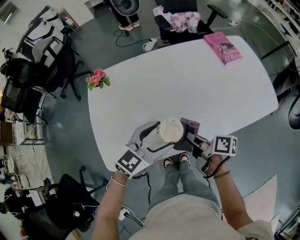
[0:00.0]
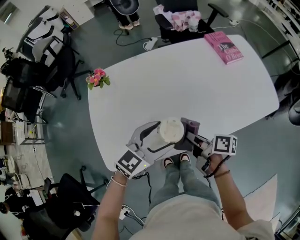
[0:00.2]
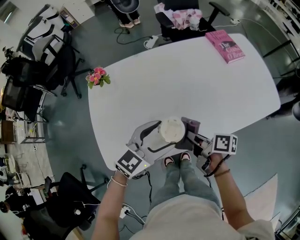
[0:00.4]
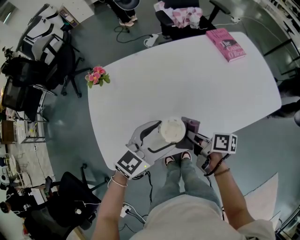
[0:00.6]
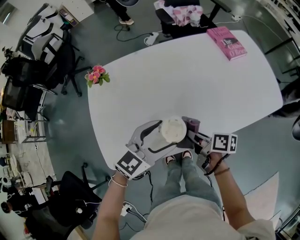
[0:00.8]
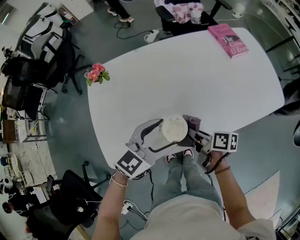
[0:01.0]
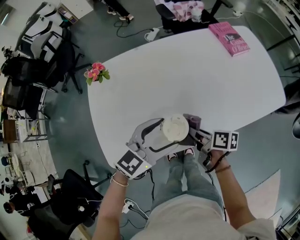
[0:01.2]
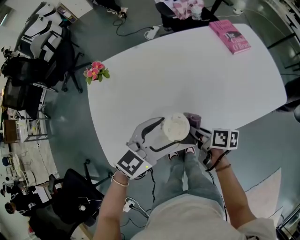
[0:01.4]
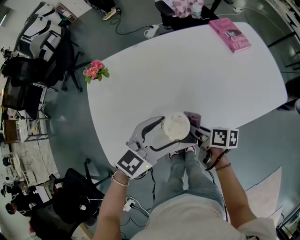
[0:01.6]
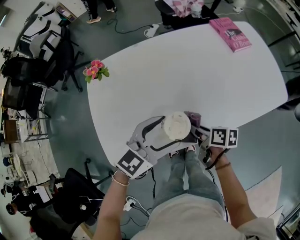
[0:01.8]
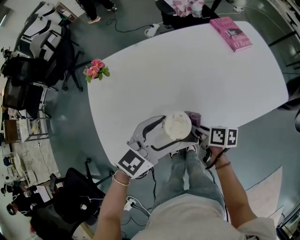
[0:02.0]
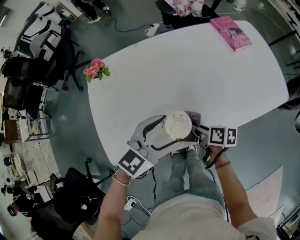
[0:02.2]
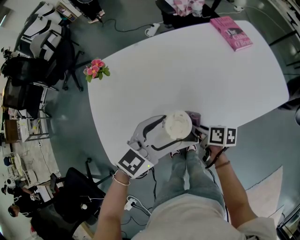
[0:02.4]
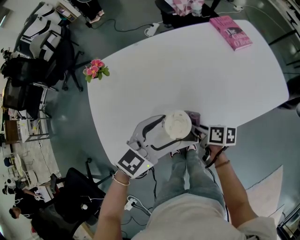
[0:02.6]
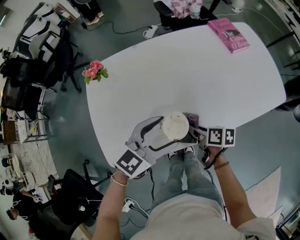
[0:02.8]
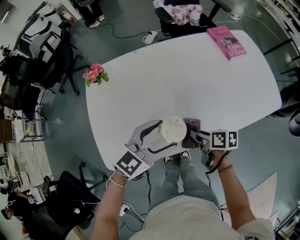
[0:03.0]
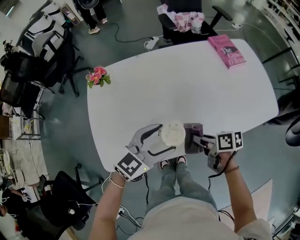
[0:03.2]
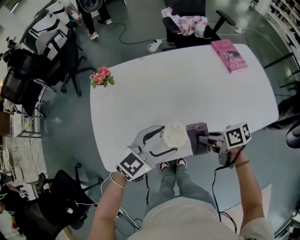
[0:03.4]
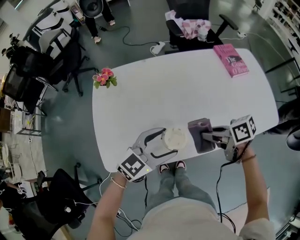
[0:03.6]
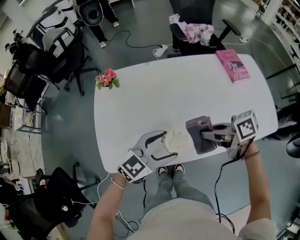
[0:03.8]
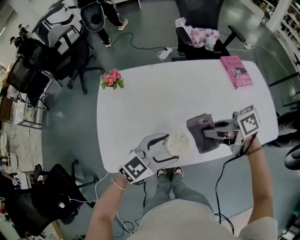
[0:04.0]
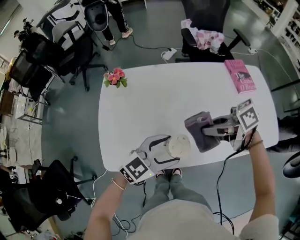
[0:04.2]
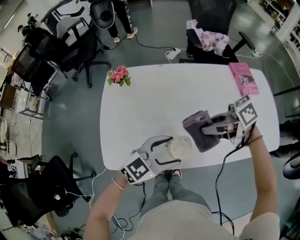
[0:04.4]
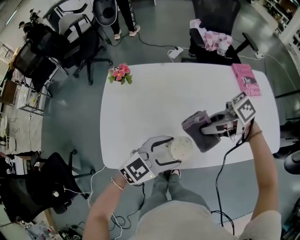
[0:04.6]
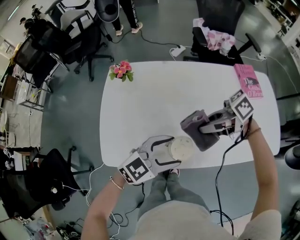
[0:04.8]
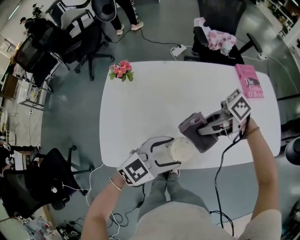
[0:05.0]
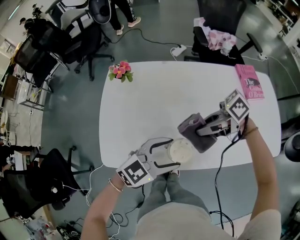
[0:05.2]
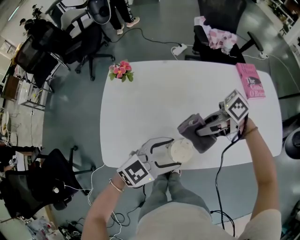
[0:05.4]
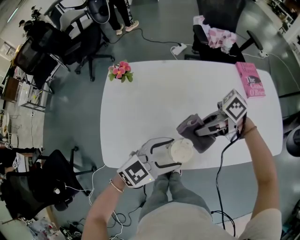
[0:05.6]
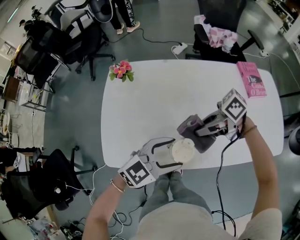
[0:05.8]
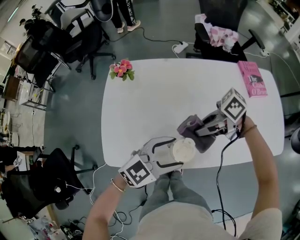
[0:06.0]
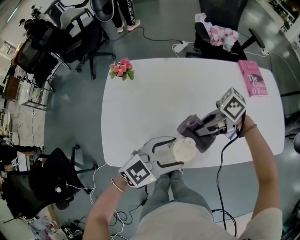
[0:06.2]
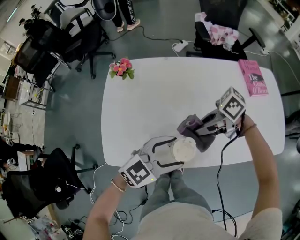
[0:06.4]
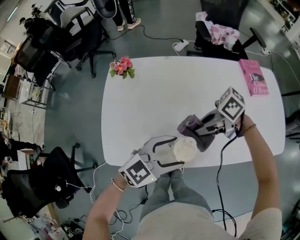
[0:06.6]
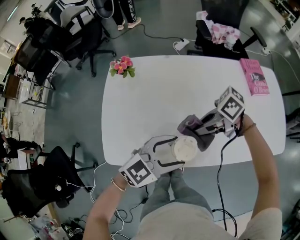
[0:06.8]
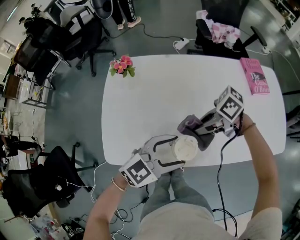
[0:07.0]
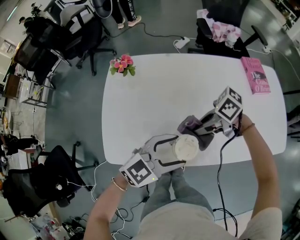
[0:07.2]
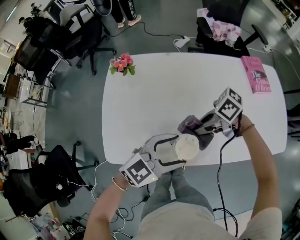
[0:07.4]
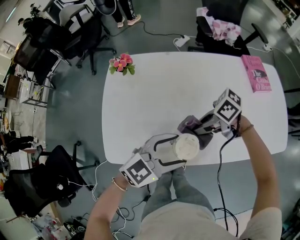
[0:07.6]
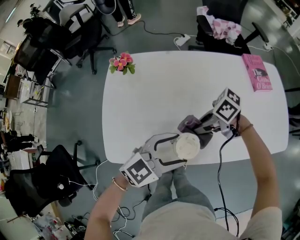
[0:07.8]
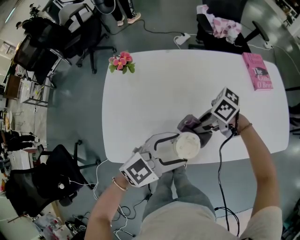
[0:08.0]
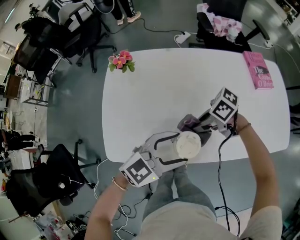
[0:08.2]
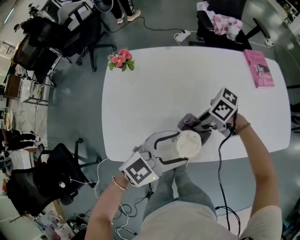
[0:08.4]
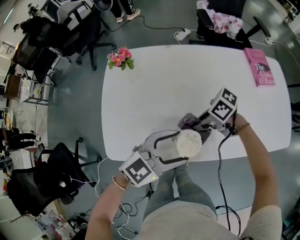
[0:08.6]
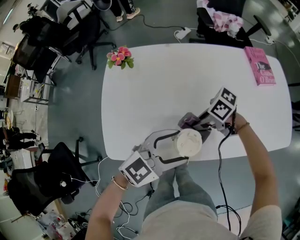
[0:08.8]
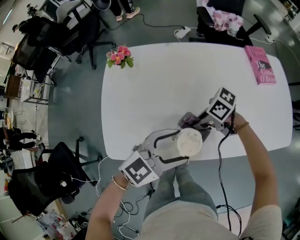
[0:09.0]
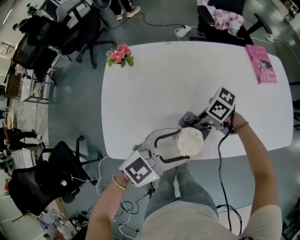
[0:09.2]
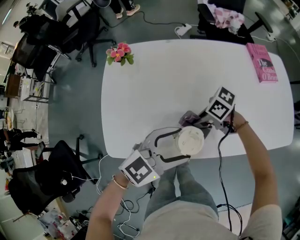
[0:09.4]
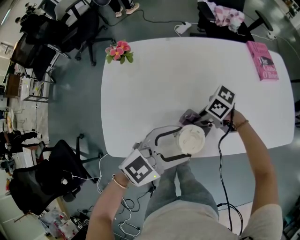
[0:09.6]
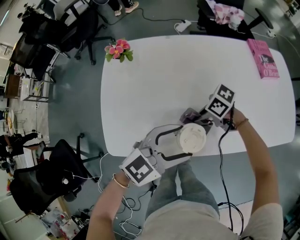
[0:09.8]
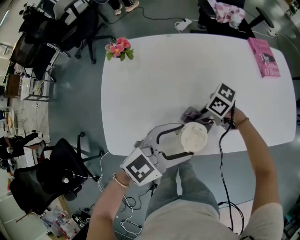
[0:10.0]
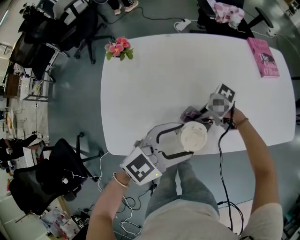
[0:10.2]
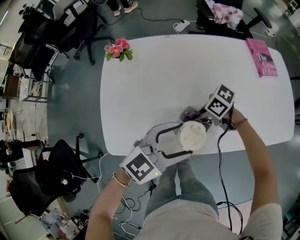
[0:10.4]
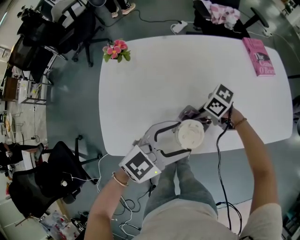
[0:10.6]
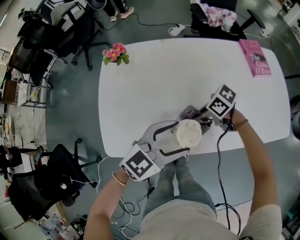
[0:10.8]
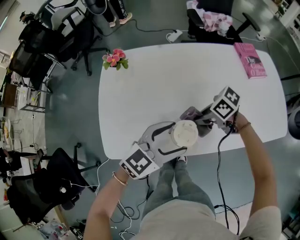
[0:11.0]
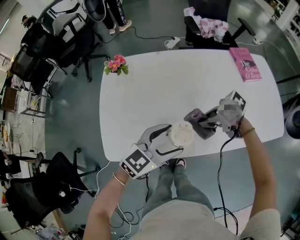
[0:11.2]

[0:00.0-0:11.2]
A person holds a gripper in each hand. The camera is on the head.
0:00.0 to 0:01.6: The right gripper shifts about 5 cm downward.
0:01.6 to 0:03.2: The grippers stay close to where they were, moving slightly.
0:03.2 to 0:04.8: The right gripper travels upward by roughly 15 cm, and changes its angle by approximately 60 degrees.
0:04.8 to 0:06.4: The right gripper travels downward by roughly 5 cm.
0:06.4 to 0:08.0: The right gripper travels downward by approximately 5 cm.
0:08.0 to 0:09.6: The right gripper shifts approximately 5 cm downward.
0:09.6 to 0:11.2: The right gripper is displaced upward by roughly 5 cm.

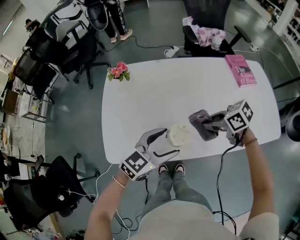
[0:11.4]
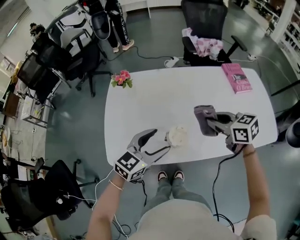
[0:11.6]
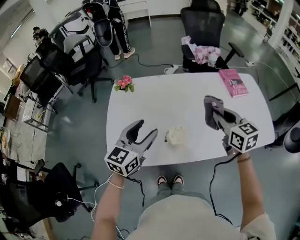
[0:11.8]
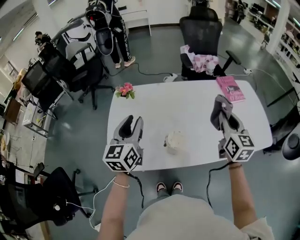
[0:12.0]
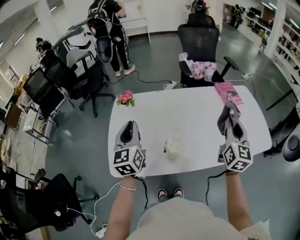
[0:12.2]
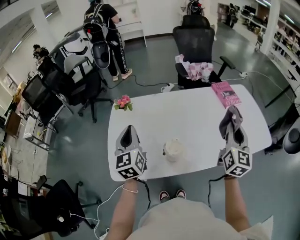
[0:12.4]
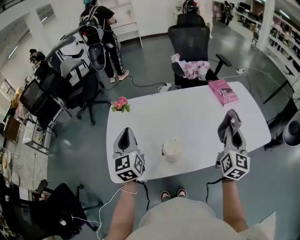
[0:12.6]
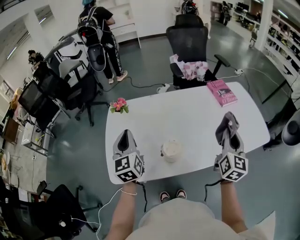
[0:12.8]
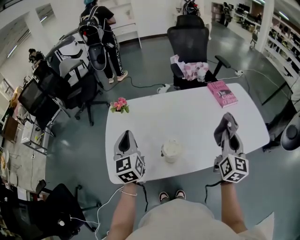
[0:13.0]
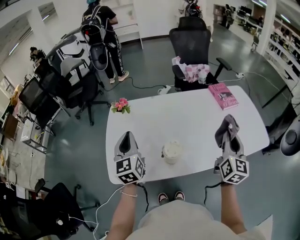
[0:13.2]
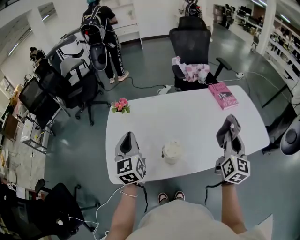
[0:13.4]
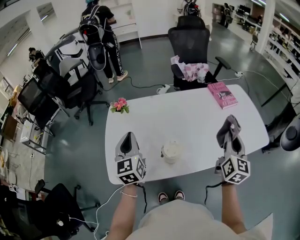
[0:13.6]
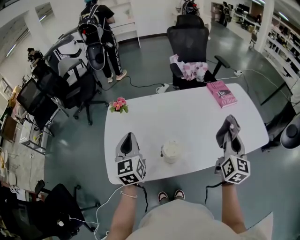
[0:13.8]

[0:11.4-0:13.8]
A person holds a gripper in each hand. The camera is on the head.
0:11.4 to 0:12.6: The left gripper shifts by some 20 cm, rotates some 60 degrees, and closes; the right gripper heads upward, covering approximately 15 cm, and tips its fingers upward by approximately 40 degrees.
0:12.6 to 0:13.8: The grippers make only small movements.

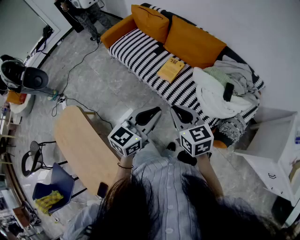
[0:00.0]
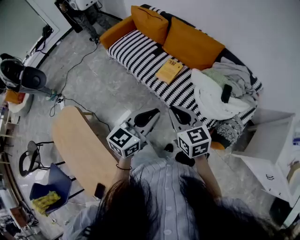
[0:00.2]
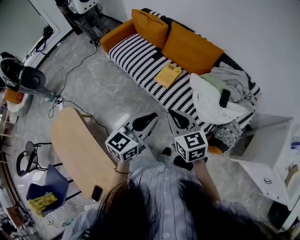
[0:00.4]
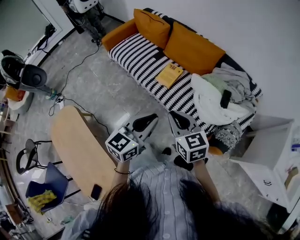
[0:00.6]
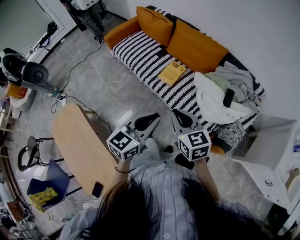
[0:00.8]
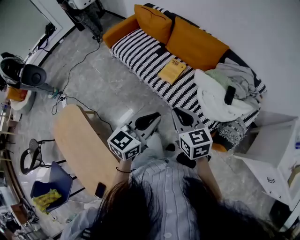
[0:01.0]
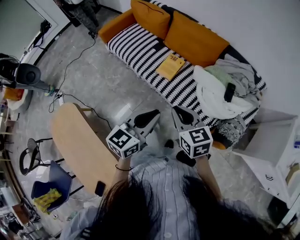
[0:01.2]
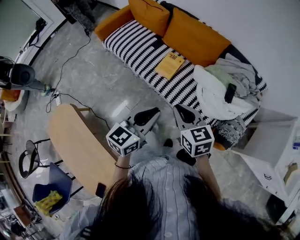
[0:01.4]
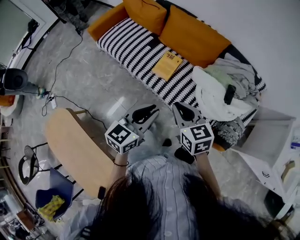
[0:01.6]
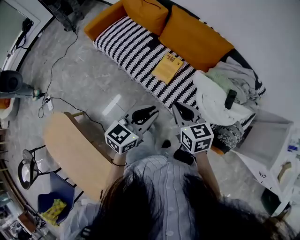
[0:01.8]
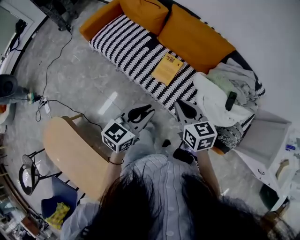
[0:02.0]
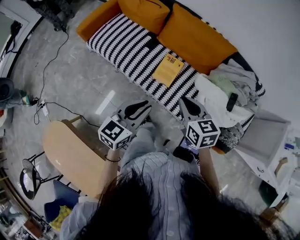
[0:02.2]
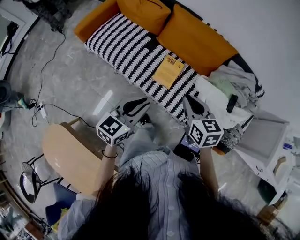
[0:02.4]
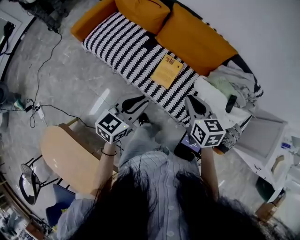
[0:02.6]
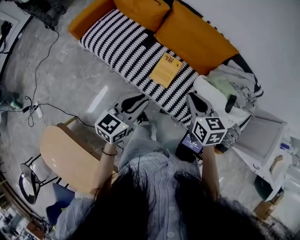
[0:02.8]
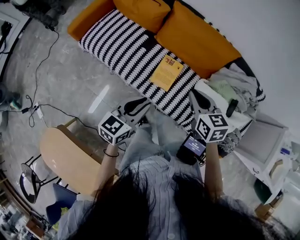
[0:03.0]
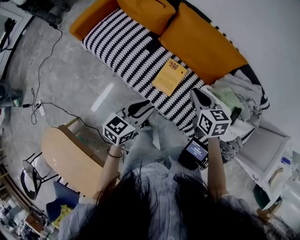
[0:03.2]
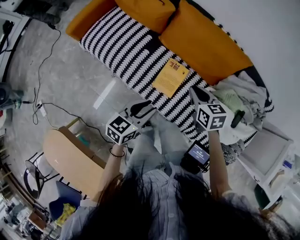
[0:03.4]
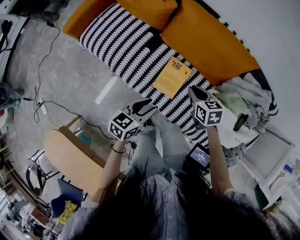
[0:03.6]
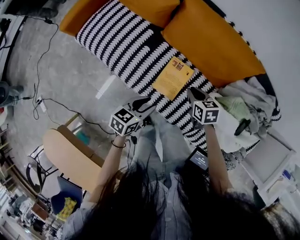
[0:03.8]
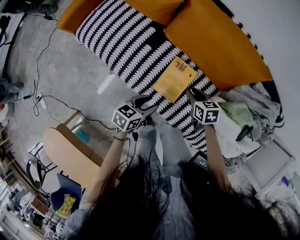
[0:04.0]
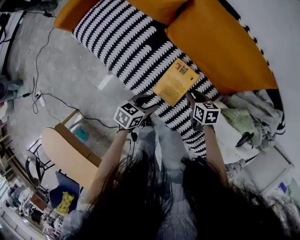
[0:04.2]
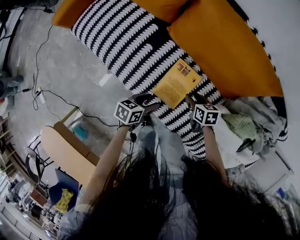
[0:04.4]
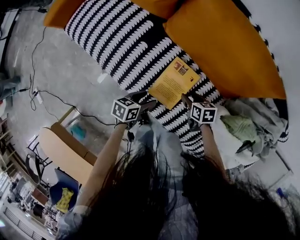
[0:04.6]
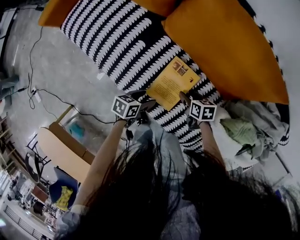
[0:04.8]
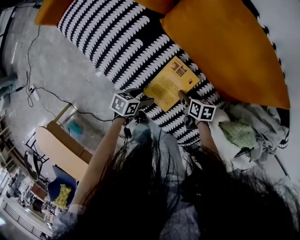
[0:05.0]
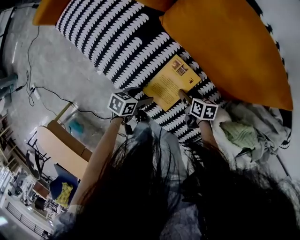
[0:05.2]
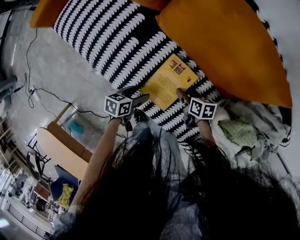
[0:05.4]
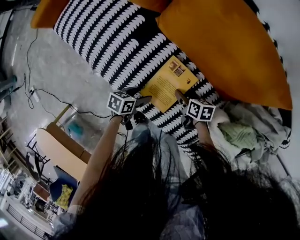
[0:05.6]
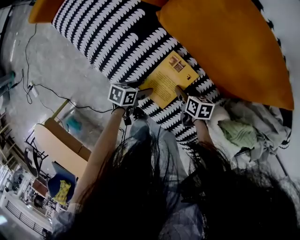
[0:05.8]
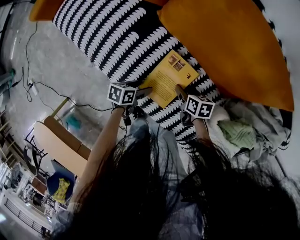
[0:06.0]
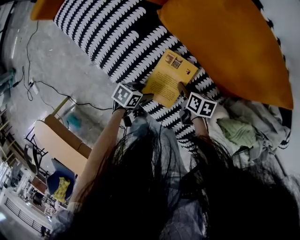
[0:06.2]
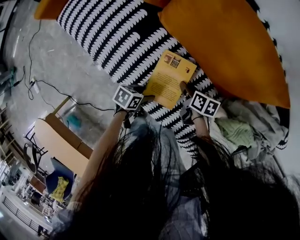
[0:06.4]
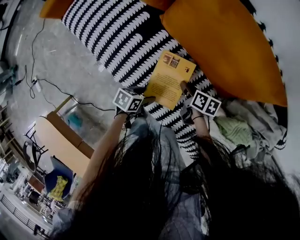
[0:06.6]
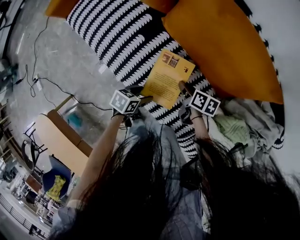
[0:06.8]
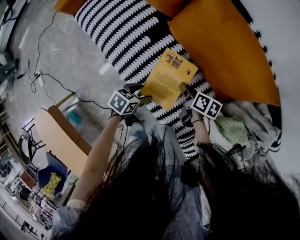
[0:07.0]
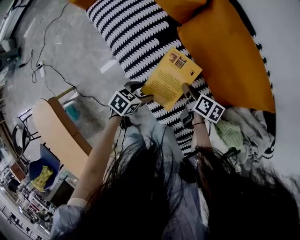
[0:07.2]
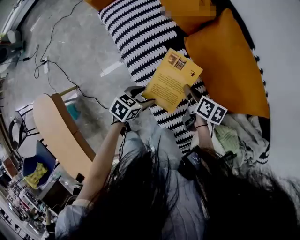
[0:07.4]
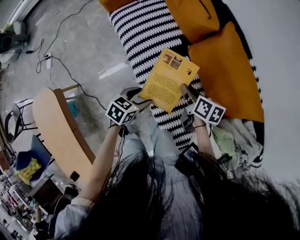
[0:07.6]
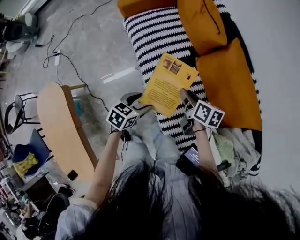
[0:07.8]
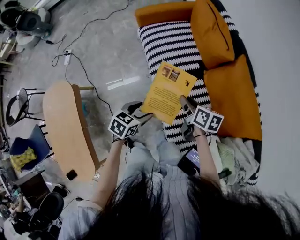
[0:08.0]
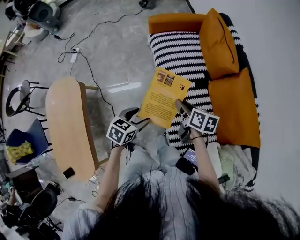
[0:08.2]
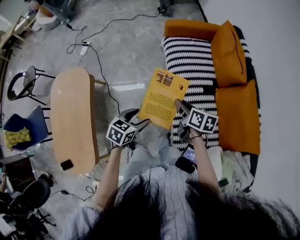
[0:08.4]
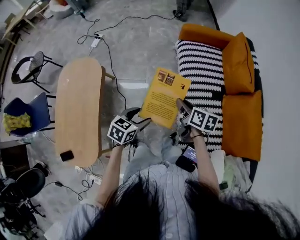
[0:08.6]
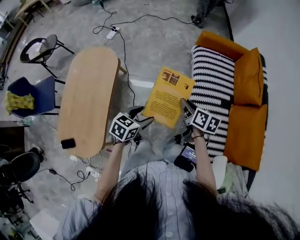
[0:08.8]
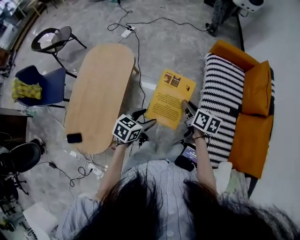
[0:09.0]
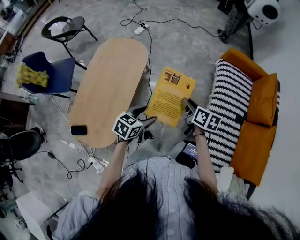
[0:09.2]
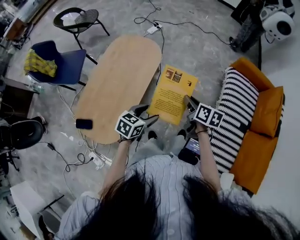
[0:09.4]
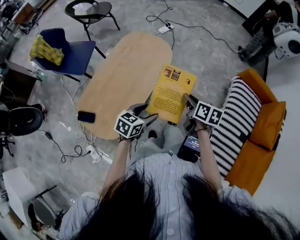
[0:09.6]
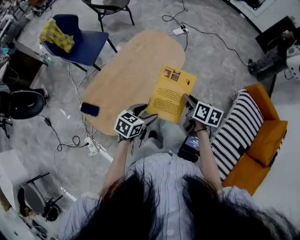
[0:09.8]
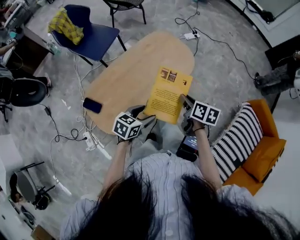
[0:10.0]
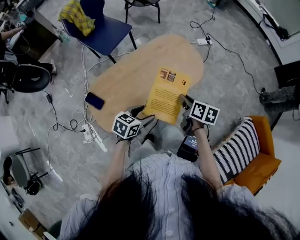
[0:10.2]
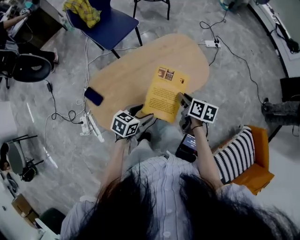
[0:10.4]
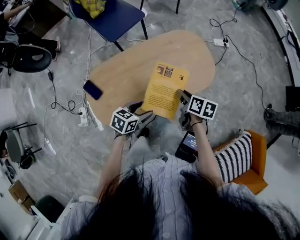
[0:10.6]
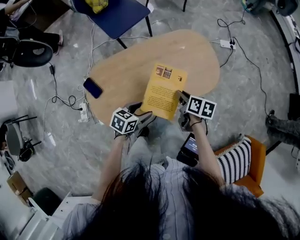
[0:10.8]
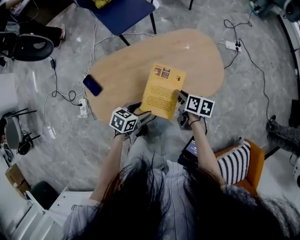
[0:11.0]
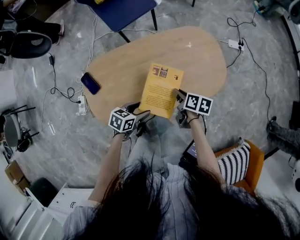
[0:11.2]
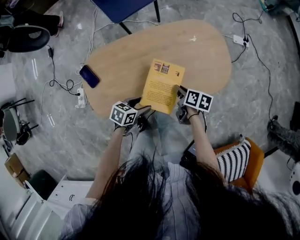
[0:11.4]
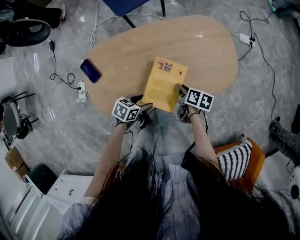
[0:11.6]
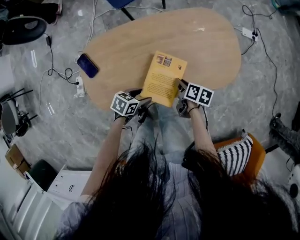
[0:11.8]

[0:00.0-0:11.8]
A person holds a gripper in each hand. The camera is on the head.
0:00.0 to 0:01.4: The two grippers go some 5 cm forward.
0:01.4 to 0:03.0: The left gripper goes about 30 cm forward, to the left and downward; the right gripper travels forward by some 30 cm.
0:03.0 to 0:04.4: The right gripper goes some 40 cm downward, swivels some 30 degrees, and opens its fingers; the left gripper travels downward and forward by about 35 cm, swivels about 40 degrees, and opens its fingers.
0:04.4 to 0:06.0: The right gripper is displaced downward by about 10 cm. Meanwhile the left gripper heads downward, covering some 15 cm.
0:06.0 to 0:07.4: Both grippers travel together upward, roughly 25 cm. The left gripper changes its angle by approximately 20 degrees. The right gripper closes its fingers.
0:07.4 to 0:08.8: The pair of grippers is taken about 40 cm. The right gripper turns by some 40 degrees. The left gripper changes its angle by some 50 degrees.
0:08.8 to 0:10.4: The right gripper moves roughly 50 cm, and swivels about 50 degrees. Meanwhile the left gripper ends up approximately 40 cm from where it was, and swivels about 50 degrees.
0:10.4 to 0:11.8: The two grippers go approximately 20 cm downward. The left gripper rotates about 20 degrees; the right gripper changes its angle by some 20 degrees.
